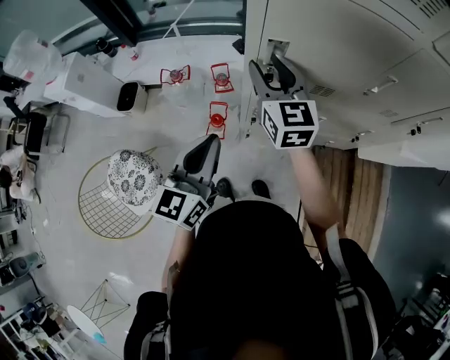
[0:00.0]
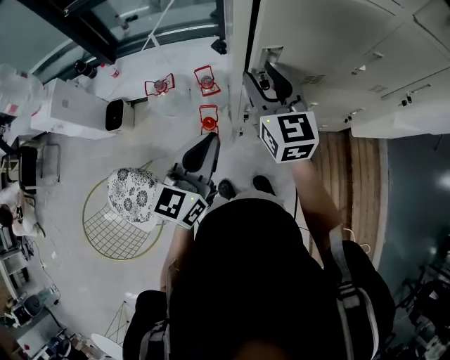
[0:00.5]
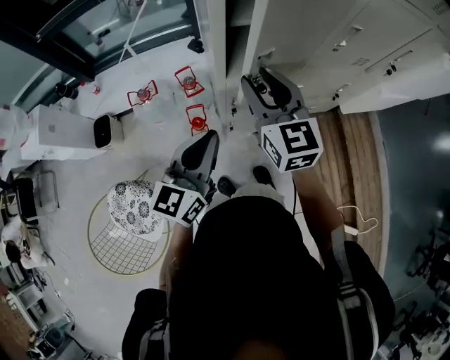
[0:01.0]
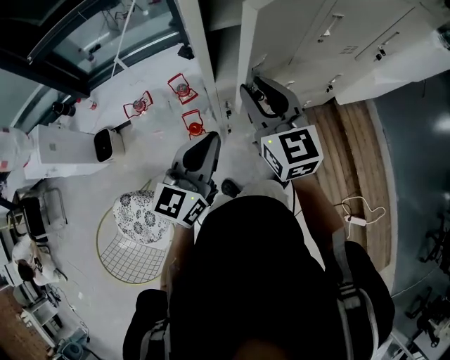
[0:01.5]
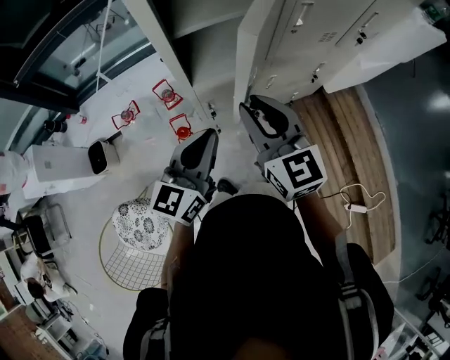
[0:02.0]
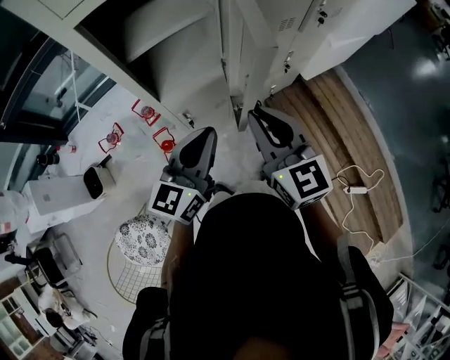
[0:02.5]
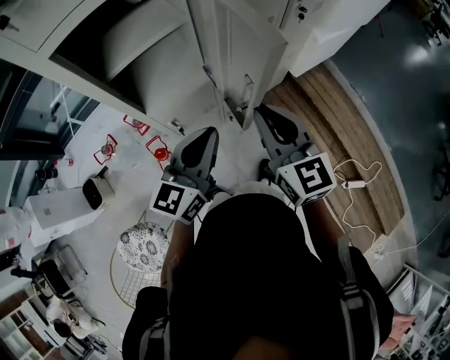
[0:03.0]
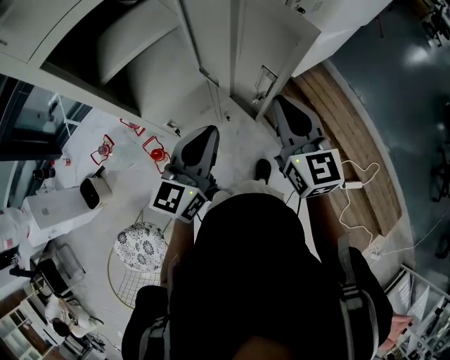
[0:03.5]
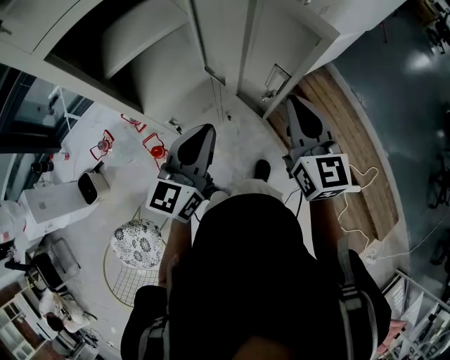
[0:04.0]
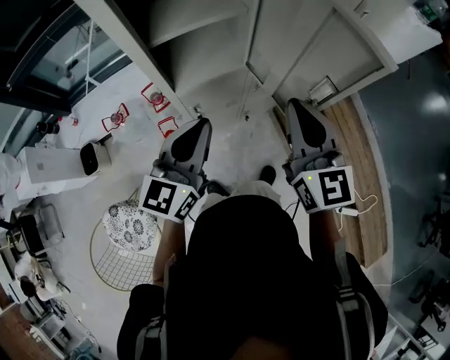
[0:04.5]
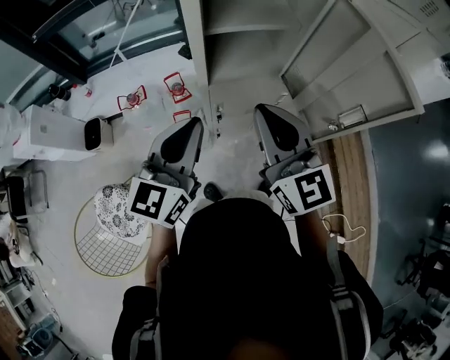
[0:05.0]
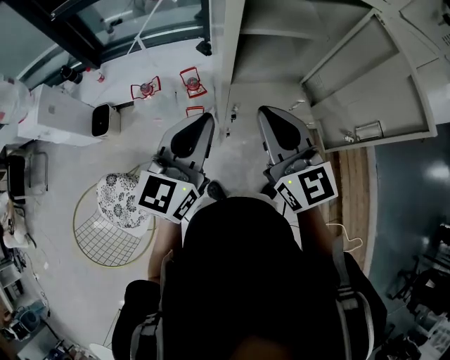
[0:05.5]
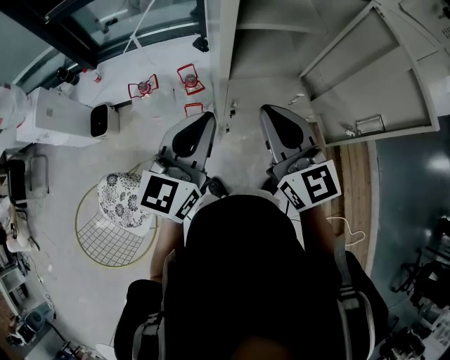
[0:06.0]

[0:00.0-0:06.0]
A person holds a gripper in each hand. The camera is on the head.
0:00.0 to 0:02.0: The left gripper travels to the right by some 10 cm, and swivels some 30 degrees; the right gripper is displaced backward and to the right by about 15 cm.
0:02.0 to 0:04.0: The right gripper travels to the right by roughly 25 cm, and changes its angle by roughly 30 degrees, while the left gripper is displaced to the right and forward by some 15 cm.
0:04.0 to 0:06.0: The right gripper changes place by some 30 cm, and swivels about 40 degrees. The left gripper changes place by about 25 cm, and swivels some 30 degrees.

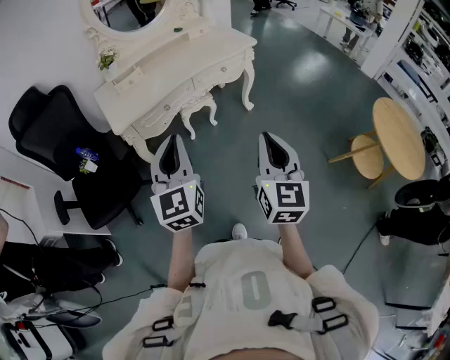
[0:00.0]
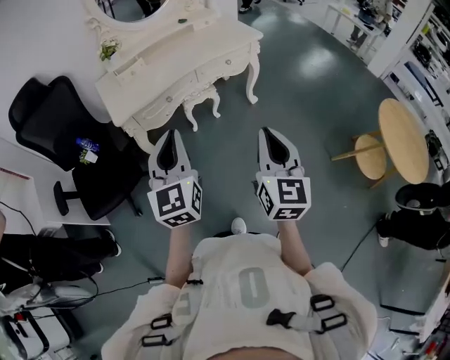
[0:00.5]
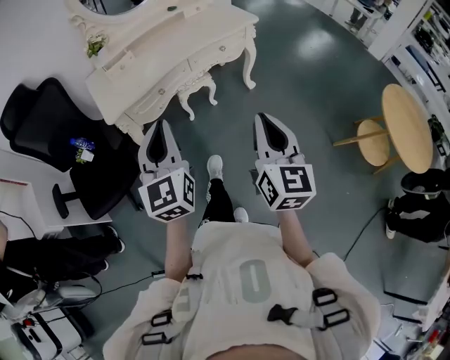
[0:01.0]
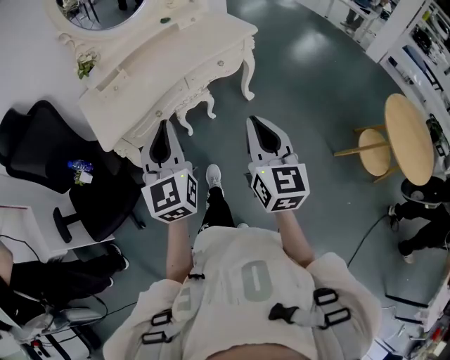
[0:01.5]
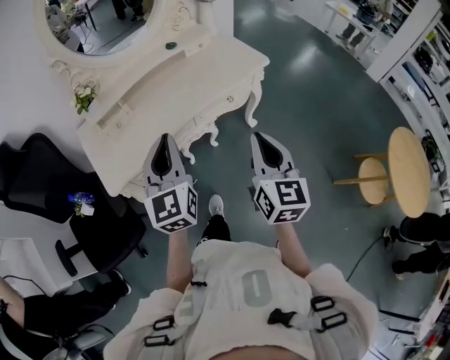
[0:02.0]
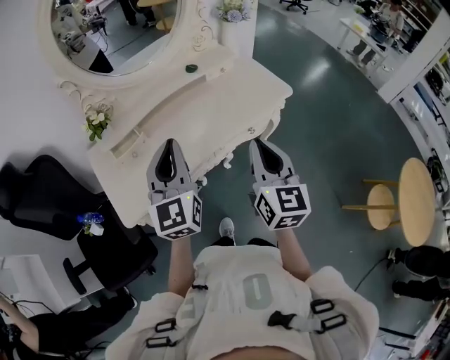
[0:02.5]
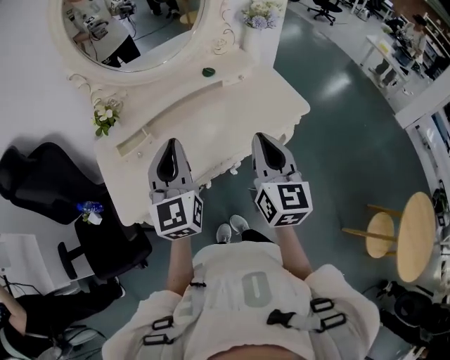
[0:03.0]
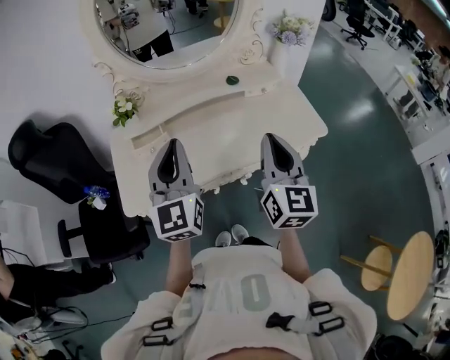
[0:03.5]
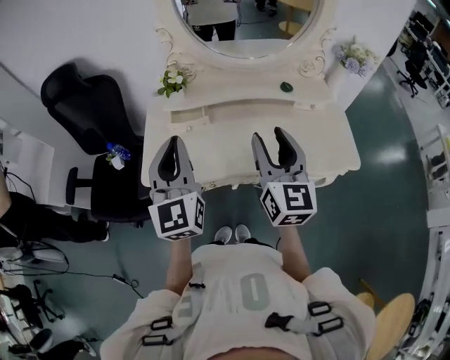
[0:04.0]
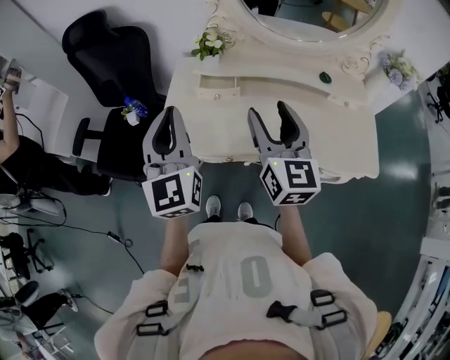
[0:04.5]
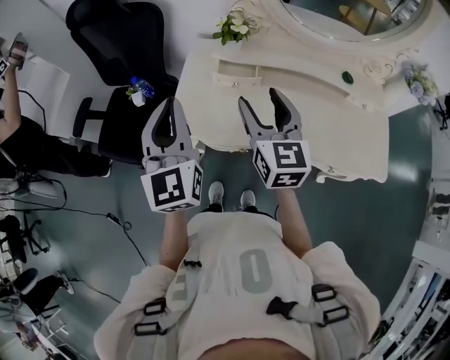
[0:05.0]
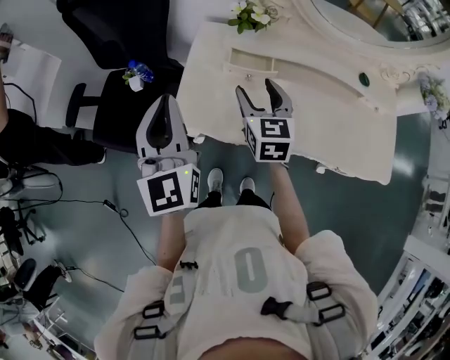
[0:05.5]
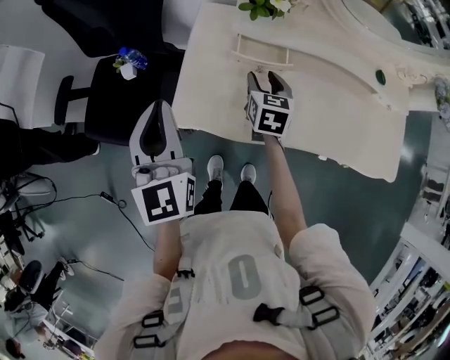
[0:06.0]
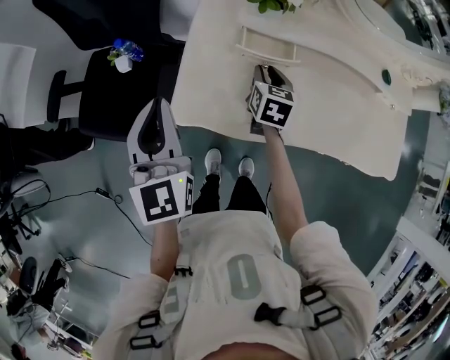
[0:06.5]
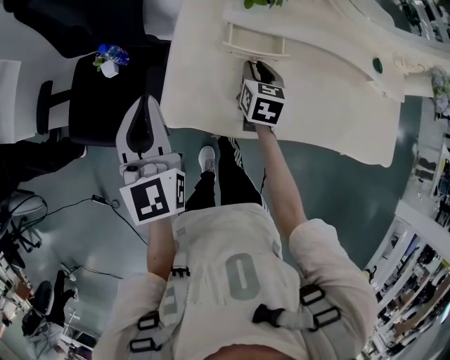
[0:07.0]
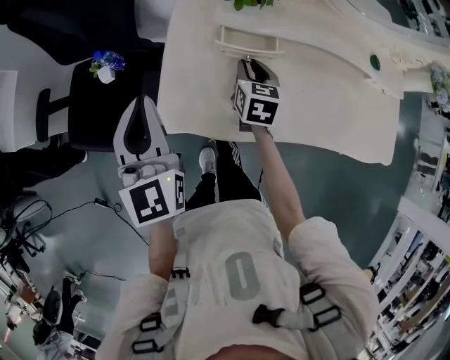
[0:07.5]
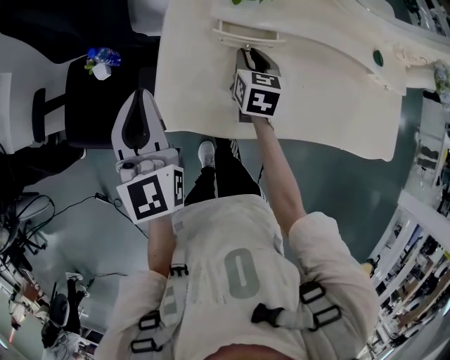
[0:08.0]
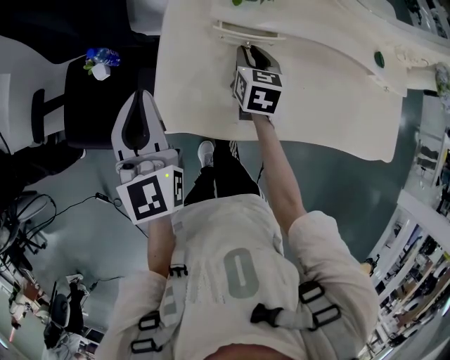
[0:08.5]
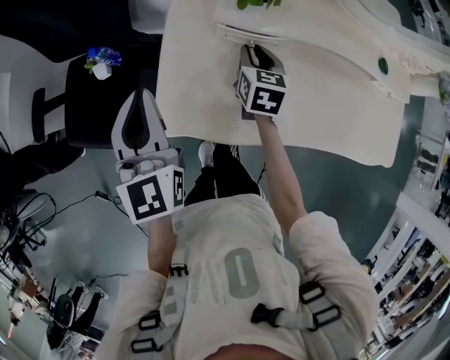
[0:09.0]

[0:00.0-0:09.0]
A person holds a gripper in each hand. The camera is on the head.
0:00.0 to 0:02.0: The two grippers go roughly 35 cm forward.
0:02.0 to 0:04.5: The right gripper shifts by about 35 cm, changes its angle by about 50 degrees, and opens its fingers, while the left gripper moves approximately 20 cm, and swivels about 50 degrees.
0:04.5 to 0:07.0: The right gripper is displaced downward and forward by about 35 cm, tips its fingers downward by roughly 40 degrees, and closes, while the left gripper goes approximately 25 cm to the left, downward and forward.
0:07.0 to 0:09.0: Both grippers travel together forward, some 5 cm.

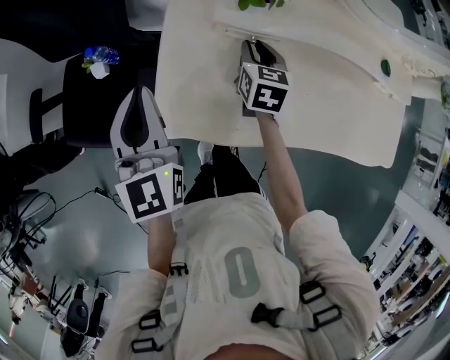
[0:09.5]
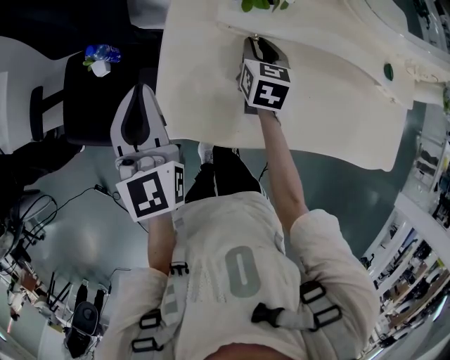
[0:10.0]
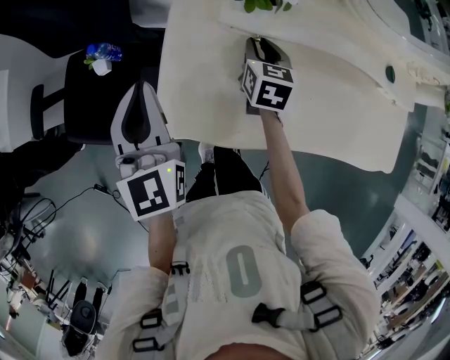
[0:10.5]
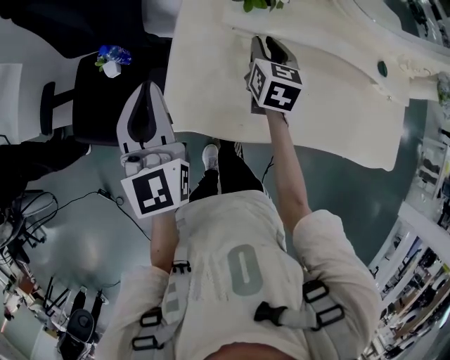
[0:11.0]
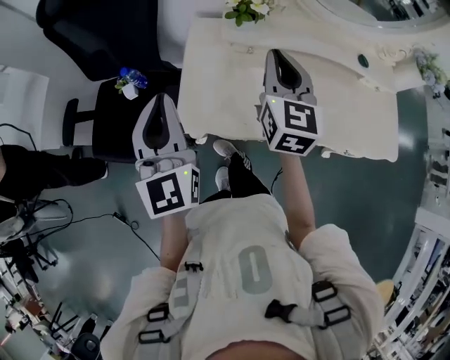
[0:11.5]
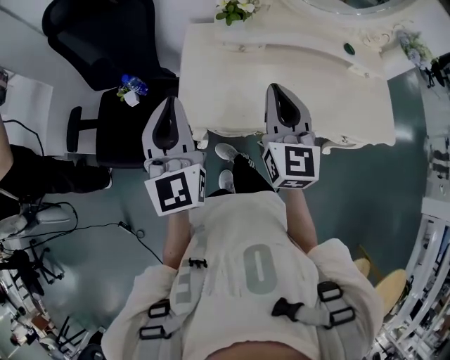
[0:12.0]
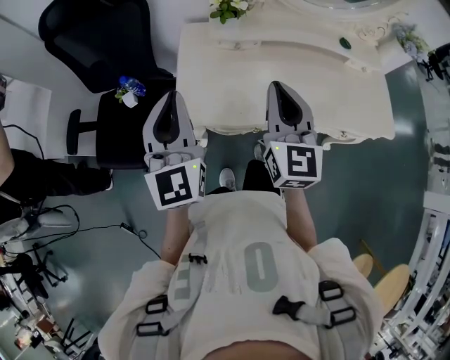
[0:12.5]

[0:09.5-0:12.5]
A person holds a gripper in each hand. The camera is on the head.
0:09.5 to 0:11.0: The right gripper is displaced upward by some 5 cm.
0:11.0 to 0:12.5: The left gripper heads backward and upward, covering some 15 cm; the right gripper shifts approximately 30 cm backward and upward, turns by some 30 degrees, and closes.

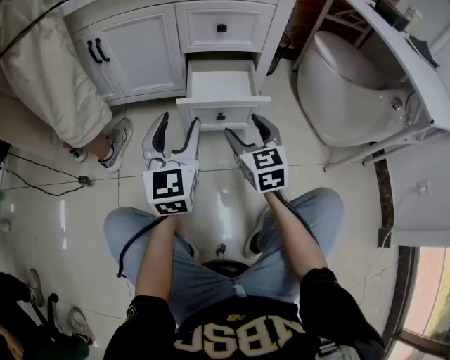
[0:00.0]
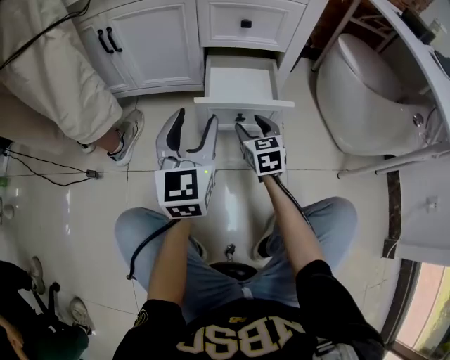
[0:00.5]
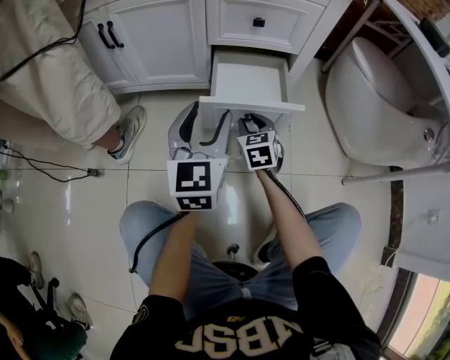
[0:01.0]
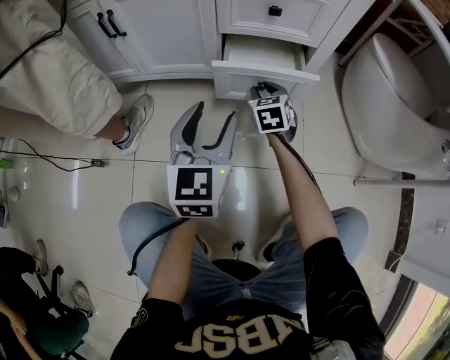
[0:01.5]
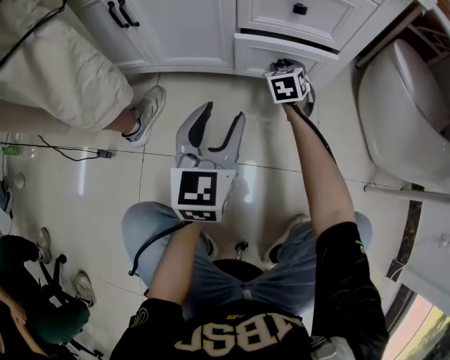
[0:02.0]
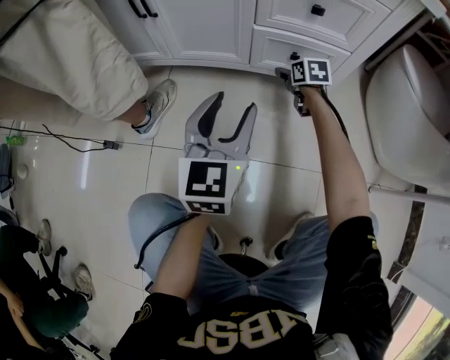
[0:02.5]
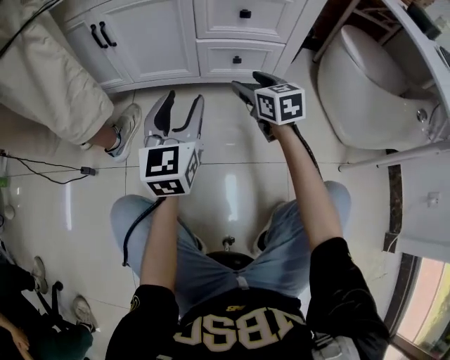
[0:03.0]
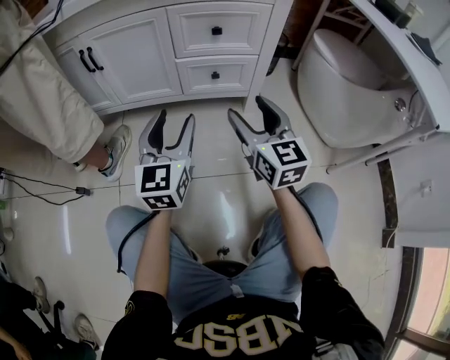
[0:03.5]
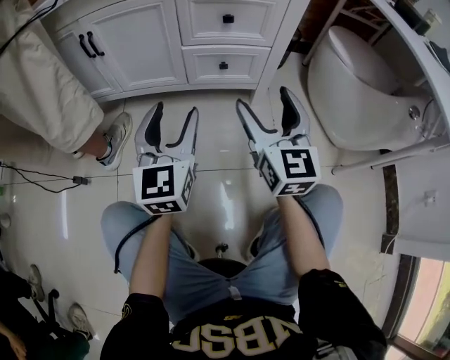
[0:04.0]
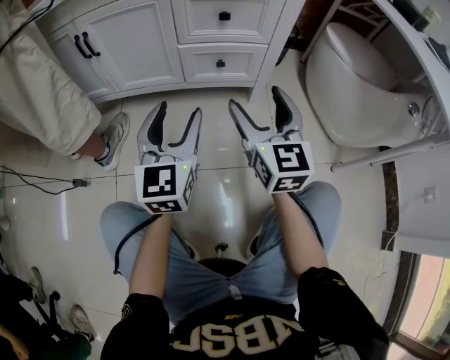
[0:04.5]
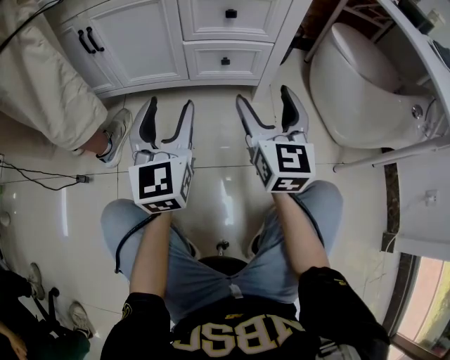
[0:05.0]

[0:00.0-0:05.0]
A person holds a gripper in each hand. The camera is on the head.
0:00.0 to 0:02.5: The right gripper is displaced forward and downward by about 35 cm, changes its angle by roughly 30 degrees, and closes and opens again, while the left gripper shifts about 5 cm forward.
0:02.5 to 0:05.0: The right gripper is displaced backward and upward by approximately 35 cm, and points its fingers some 40 degrees further upward; the left gripper ends up approximately 5 cm from where it was.

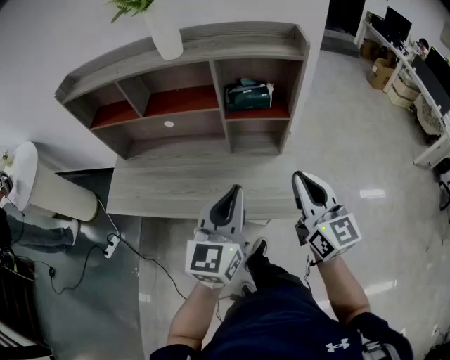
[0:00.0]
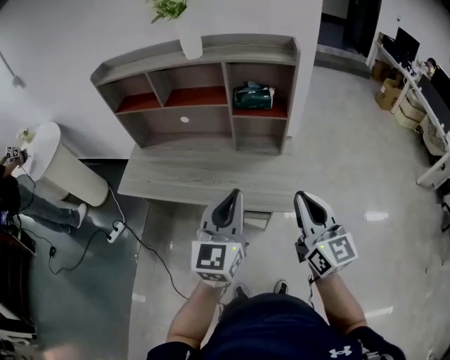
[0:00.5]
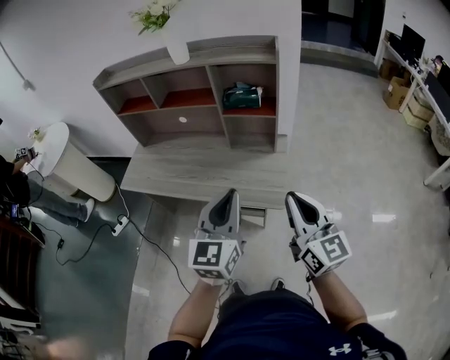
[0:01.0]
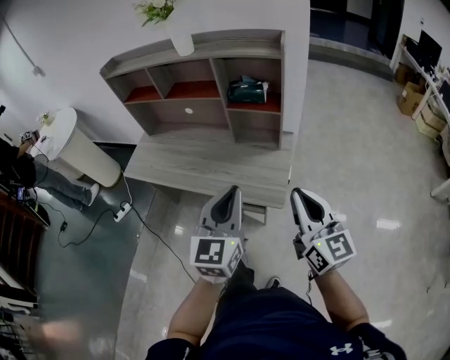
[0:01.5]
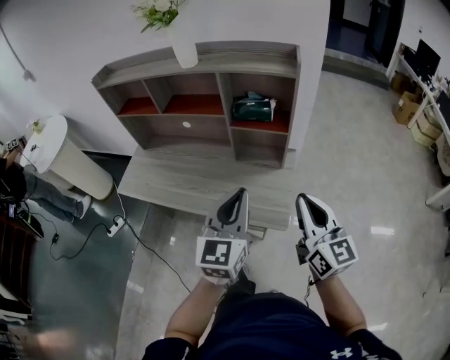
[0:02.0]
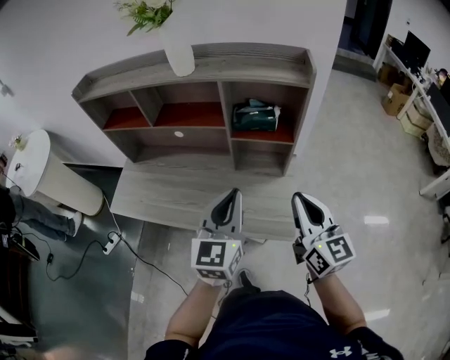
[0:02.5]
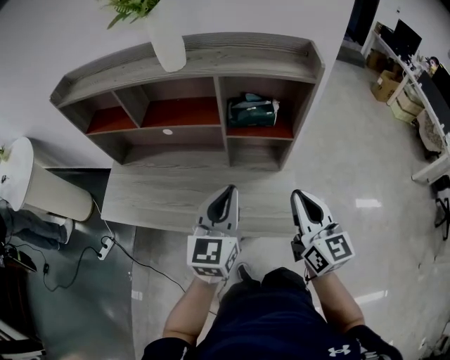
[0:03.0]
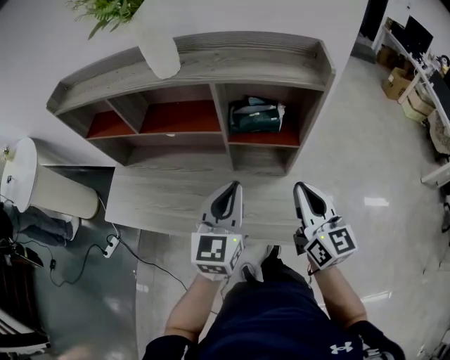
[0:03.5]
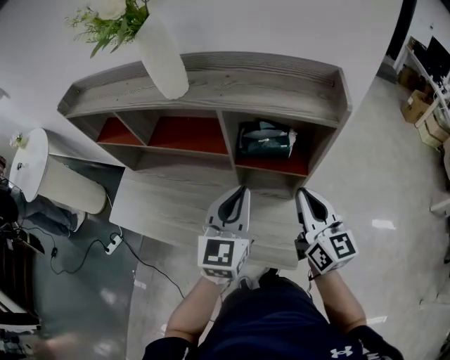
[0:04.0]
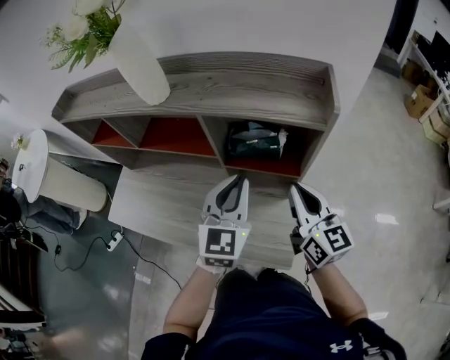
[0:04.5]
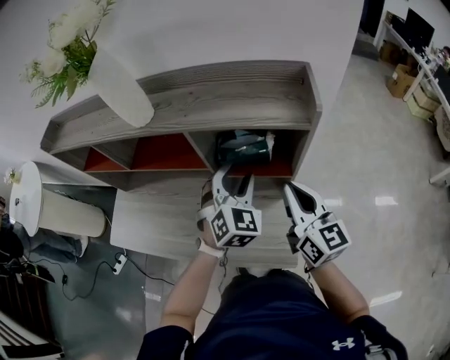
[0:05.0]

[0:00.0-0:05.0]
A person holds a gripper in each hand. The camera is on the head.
0:00.0 to 0:02.5: The right gripper moves roughly 15 cm backward and comes back. The left gripper goes backward and returns, roughly 15 cm each way.
0:02.5 to 0:05.0: The grippers both shift forward by roughly 25 cm. The left gripper rotates some 40 degrees, and opens up.
